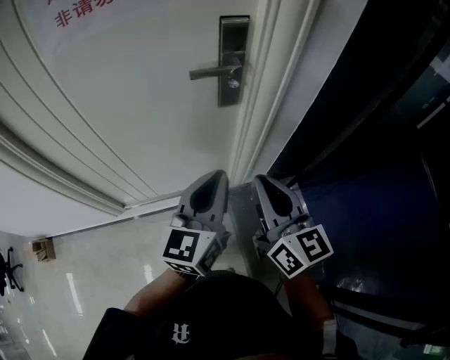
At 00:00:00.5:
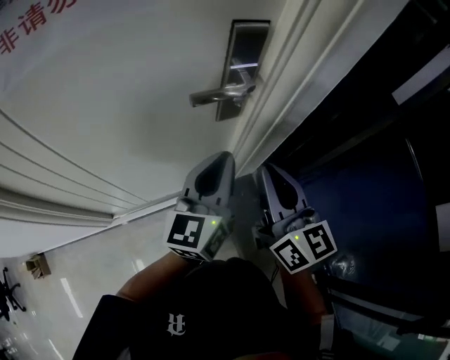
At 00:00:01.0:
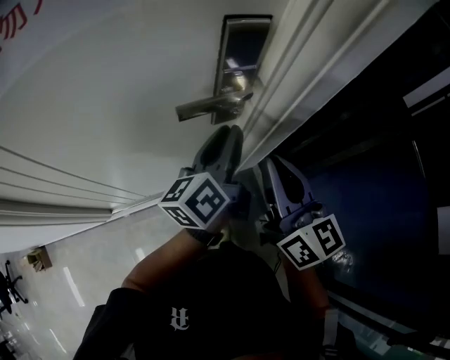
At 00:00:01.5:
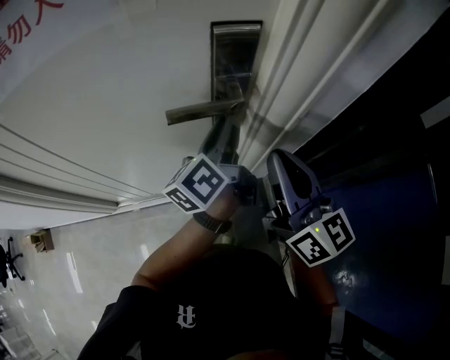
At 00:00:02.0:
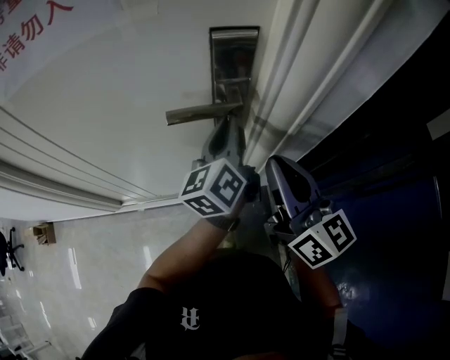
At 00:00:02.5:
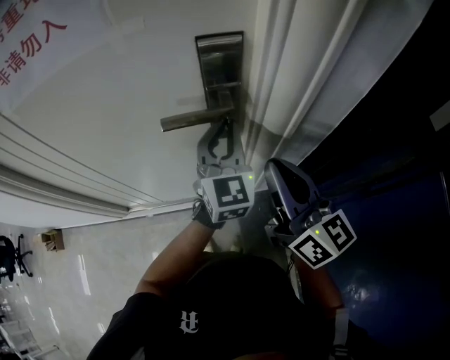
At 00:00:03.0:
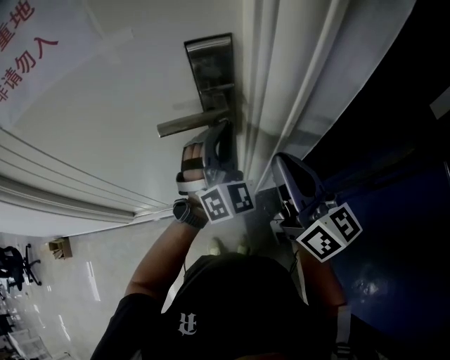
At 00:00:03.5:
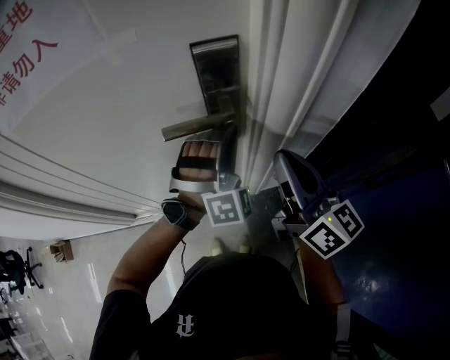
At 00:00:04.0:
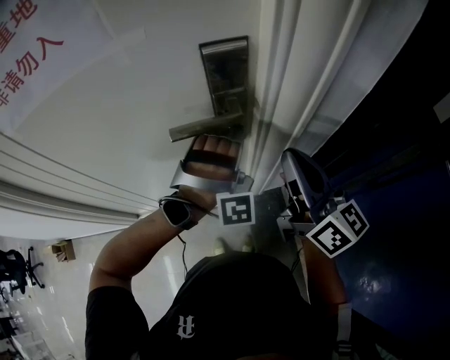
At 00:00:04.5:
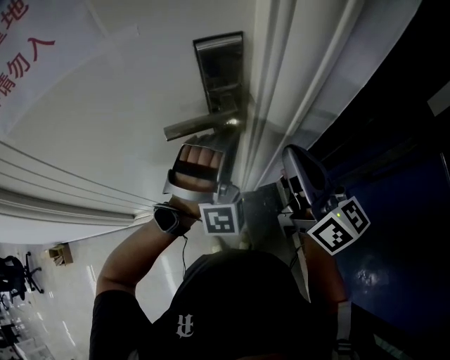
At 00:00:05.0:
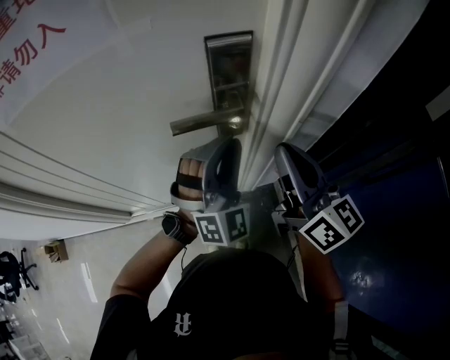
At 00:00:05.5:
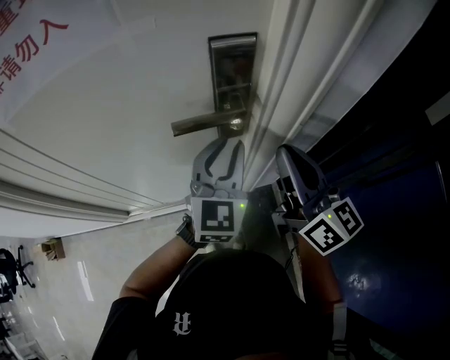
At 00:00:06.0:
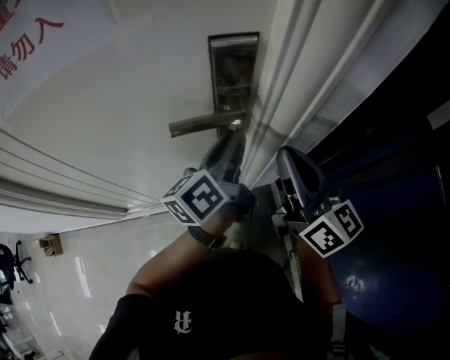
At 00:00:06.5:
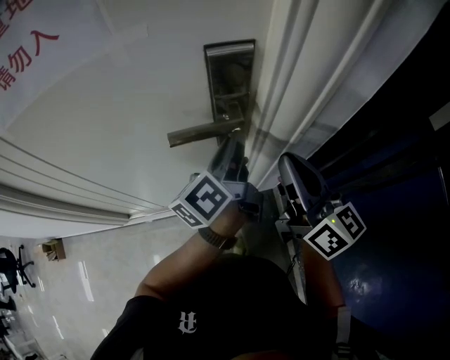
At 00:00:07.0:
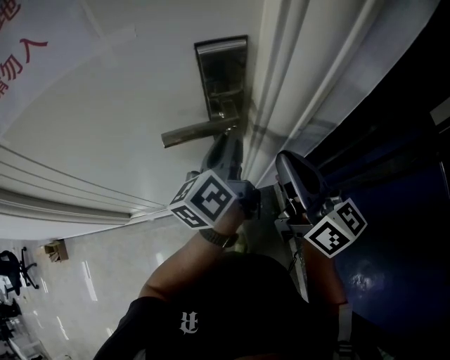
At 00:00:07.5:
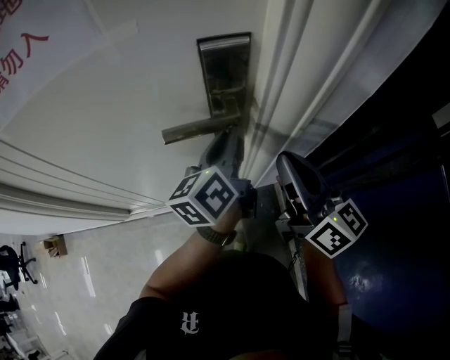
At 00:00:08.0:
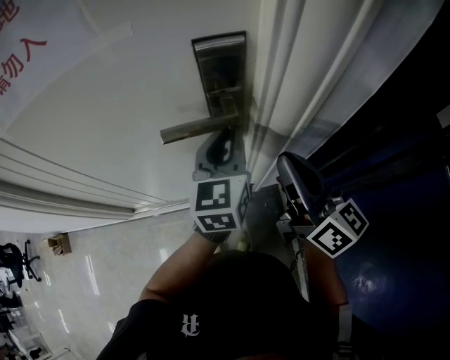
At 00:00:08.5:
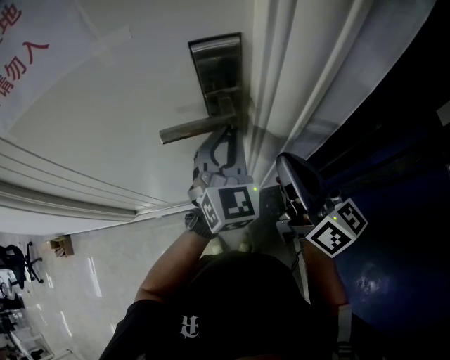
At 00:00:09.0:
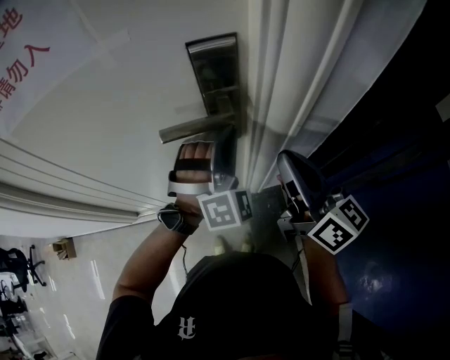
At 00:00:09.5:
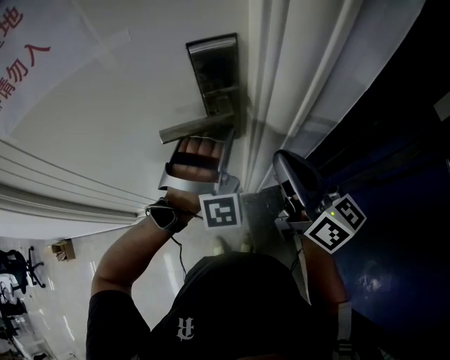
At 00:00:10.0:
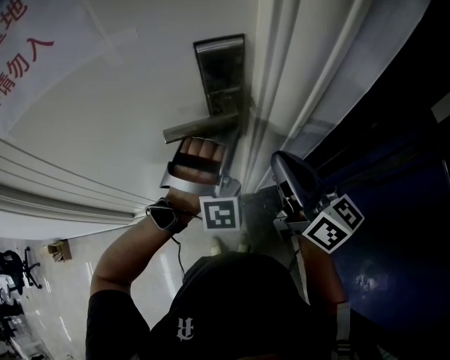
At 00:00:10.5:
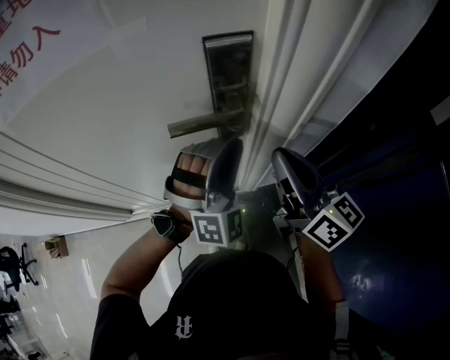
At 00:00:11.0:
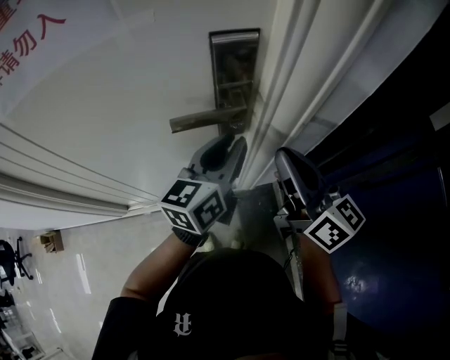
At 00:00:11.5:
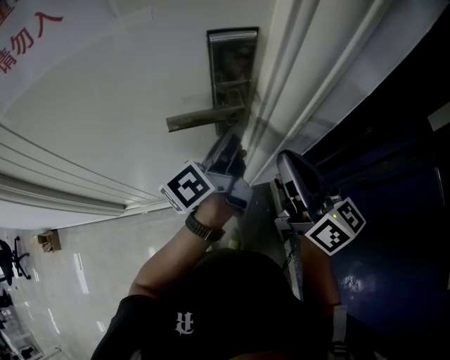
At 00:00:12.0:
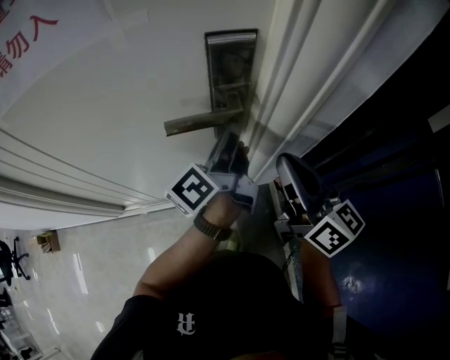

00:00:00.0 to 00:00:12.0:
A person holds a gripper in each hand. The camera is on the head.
00:00:00.0 to 00:00:02.0: Both grippers travel together forward, approximately 25 cm. The left gripper rotates about 30 degrees.
00:00:02.0 to 00:00:04.0: The left gripper rotates around the line of its fingers by roughly 140 degrees, clockwise from behind.
00:00:04.0 to 00:00:06.0: The left gripper twists approximately 150 degrees counterclockwise, seen from behind.
00:00:06.0 to 00:00:08.0: The left gripper rotates around the line of its fingers by roughly 40 degrees, clockwise from behind.
00:00:08.0 to 00:00:10.0: The left gripper rotates around the line of its fingers by about 100 degrees, clockwise from behind.
00:00:10.0 to 00:00:12.0: The left gripper rolls counterclockwise, seen from behind, by roughly 160 degrees.

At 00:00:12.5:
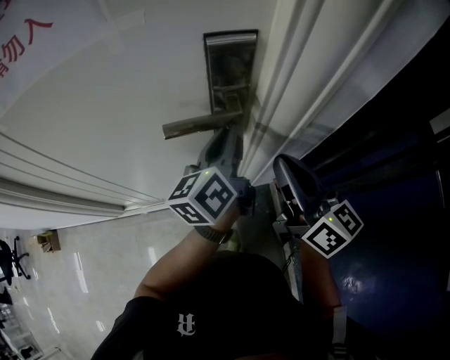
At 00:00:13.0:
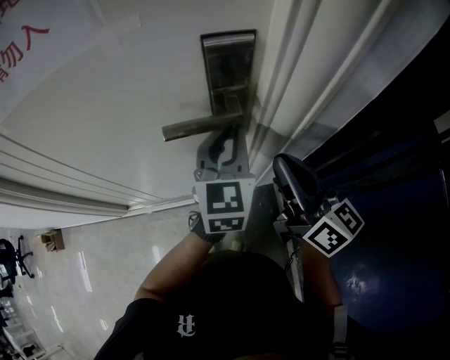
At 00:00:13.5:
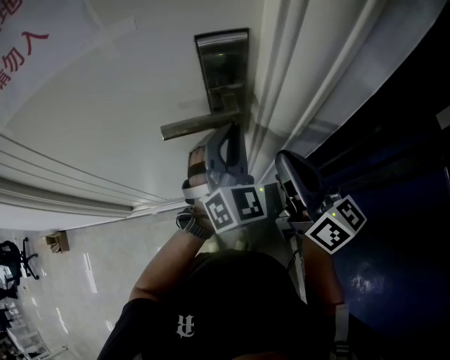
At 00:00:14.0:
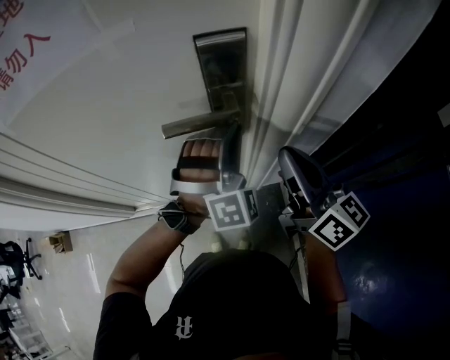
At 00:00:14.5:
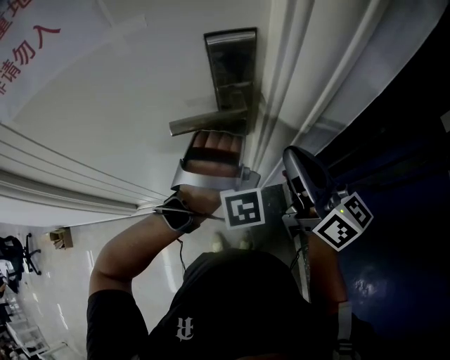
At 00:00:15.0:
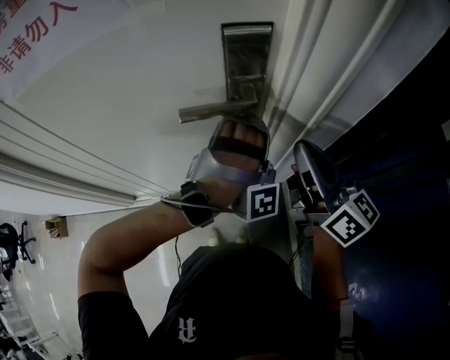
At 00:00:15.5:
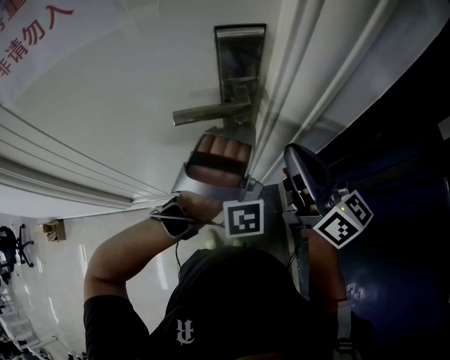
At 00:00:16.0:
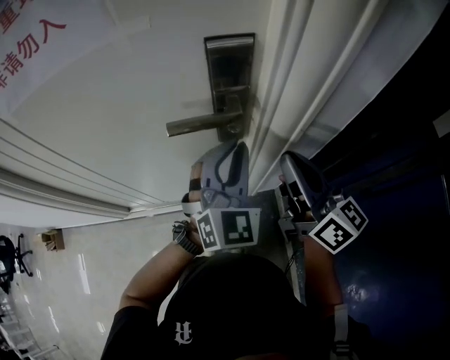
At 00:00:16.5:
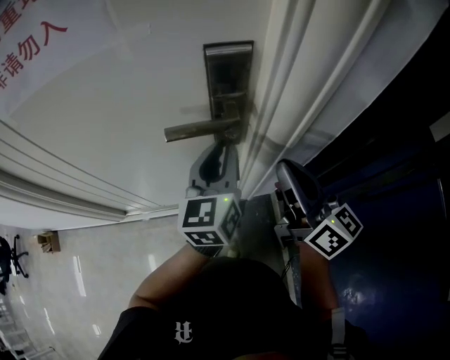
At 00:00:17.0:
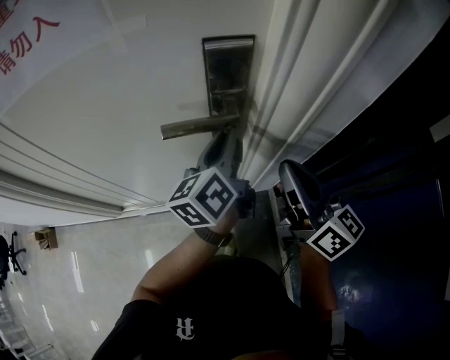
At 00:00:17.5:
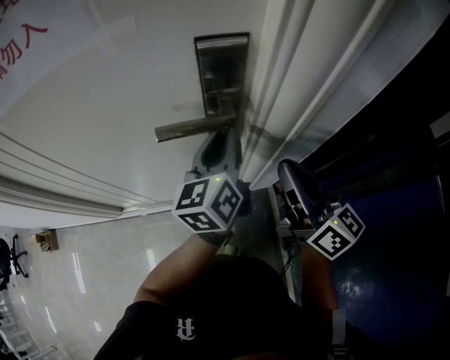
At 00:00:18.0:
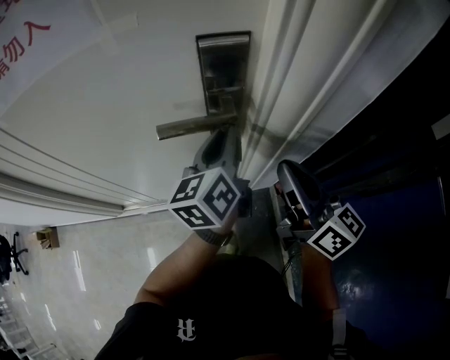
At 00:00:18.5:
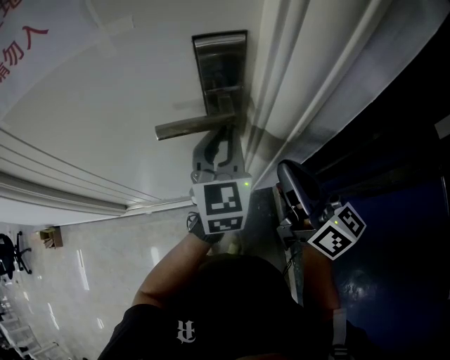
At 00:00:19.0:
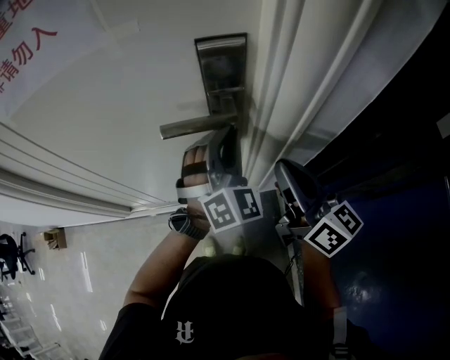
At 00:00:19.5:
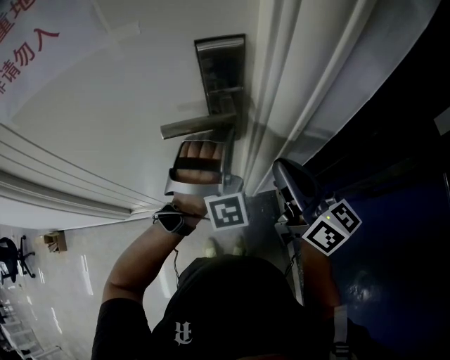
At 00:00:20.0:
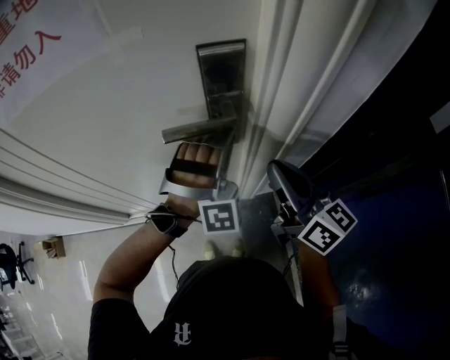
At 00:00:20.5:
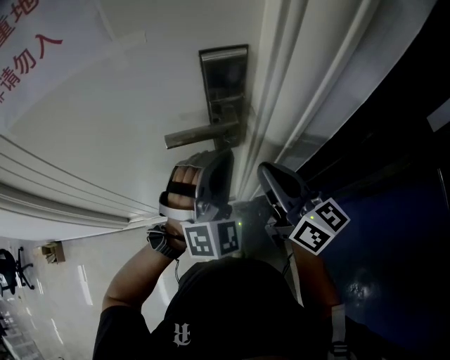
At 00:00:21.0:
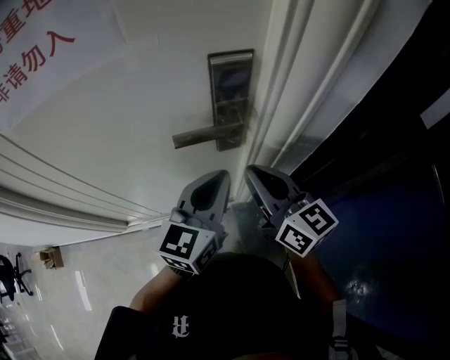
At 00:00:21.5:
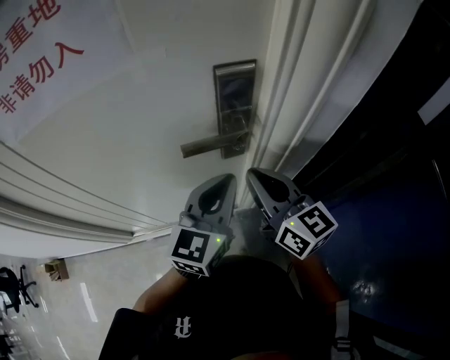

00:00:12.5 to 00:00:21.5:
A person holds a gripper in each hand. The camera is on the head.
00:00:12.5 to 00:00:14.5: The left gripper rotates around the line of its fingers by approximately 140 degrees, clockwise from behind.
00:00:14.5 to 00:00:17.0: The left gripper rolls counterclockwise, seen from behind, by approximately 140 degrees.
00:00:17.0 to 00:00:19.5: The left gripper twists approximately 130 degrees clockwise, seen from behind.
00:00:19.5 to 00:00:21.5: The left gripper heads backward, covering about 10 cm, and rolls counterclockwise, seen from behind, by roughly 90 degrees. The right gripper shifts some 10 cm to the left.

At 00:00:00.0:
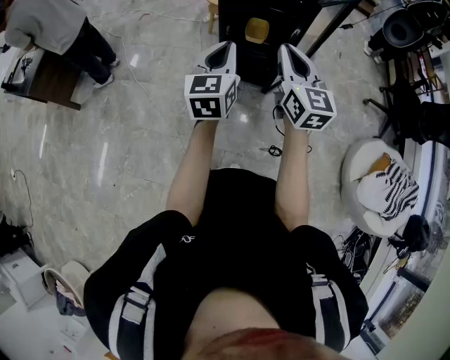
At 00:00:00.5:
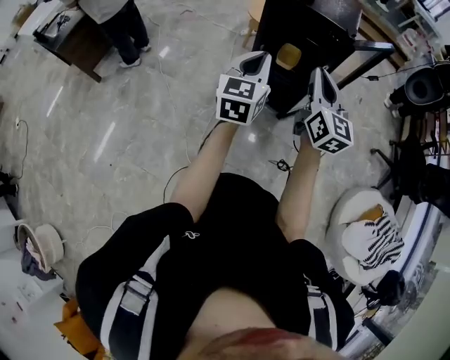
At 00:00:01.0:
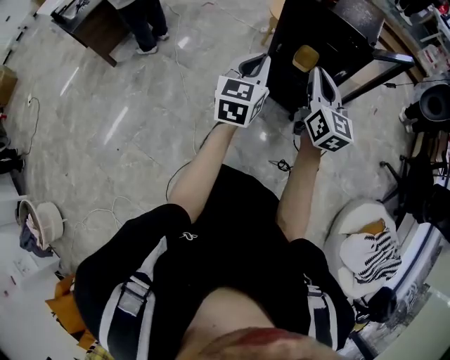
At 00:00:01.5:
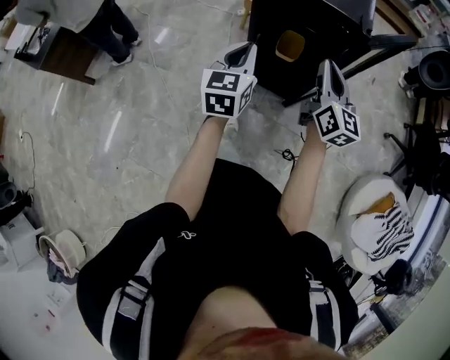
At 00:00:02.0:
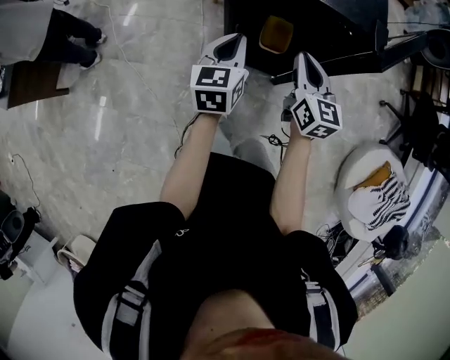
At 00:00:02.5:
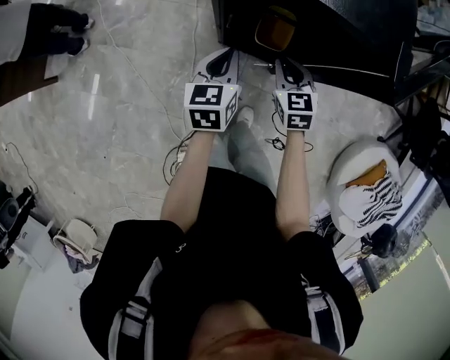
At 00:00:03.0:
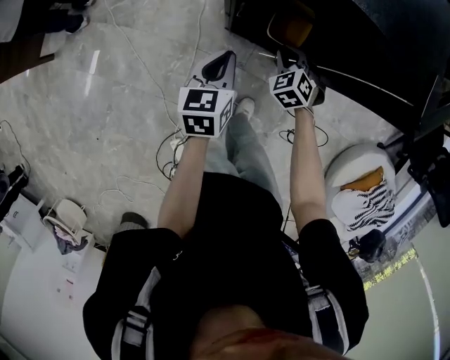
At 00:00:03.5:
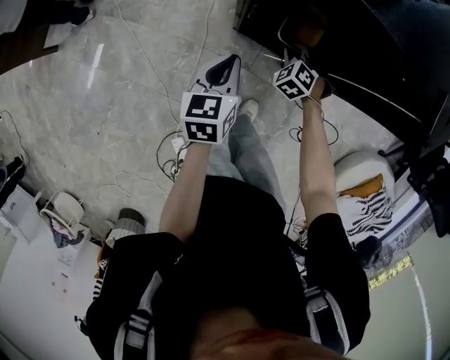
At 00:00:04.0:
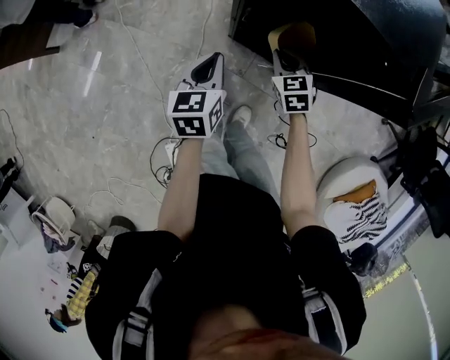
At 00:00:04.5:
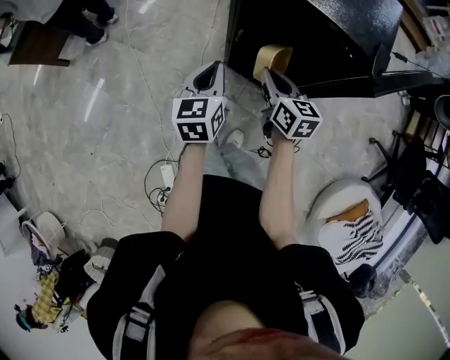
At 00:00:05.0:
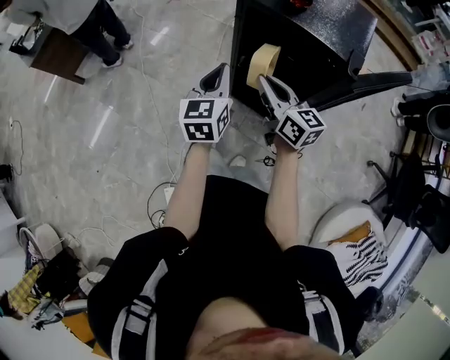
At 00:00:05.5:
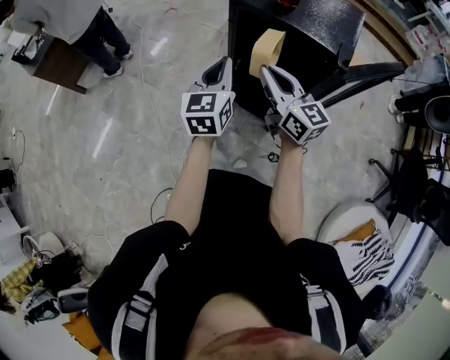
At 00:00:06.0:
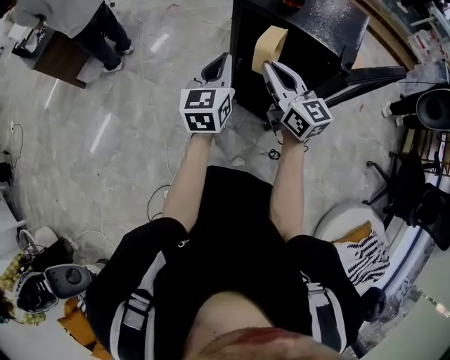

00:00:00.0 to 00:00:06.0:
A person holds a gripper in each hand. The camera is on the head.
00:00:00.0 to 00:00:02.0: Both grippers move forward and downward, approximately 35 cm.
00:00:02.0 to 00:00:04.0: The right gripper heads downward, covering roughly 20 cm, and swivels some 40 degrees; the left gripper goes about 15 cm downward, and turns by about 20 degrees.
00:00:04.0 to 00:00:06.0: Both grippers move upward, roughly 25 cm. The left gripper turns by approximately 30 degrees. Meanwhile the right gripper points its fingers roughly 50 degrees further upward.
